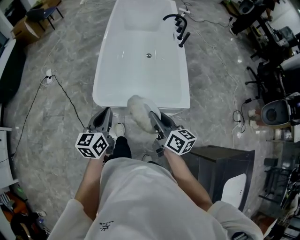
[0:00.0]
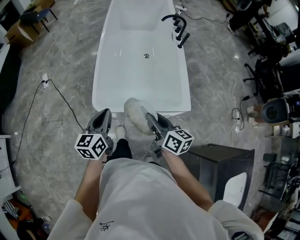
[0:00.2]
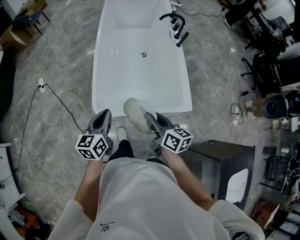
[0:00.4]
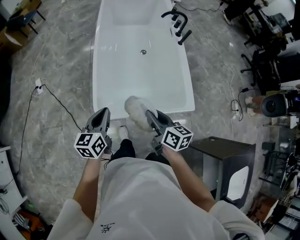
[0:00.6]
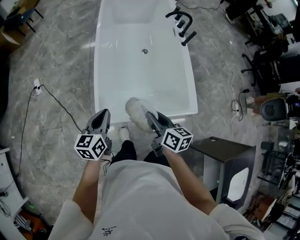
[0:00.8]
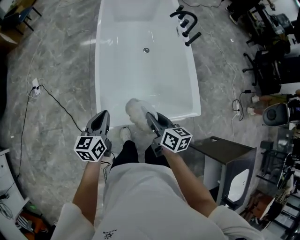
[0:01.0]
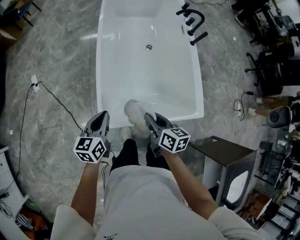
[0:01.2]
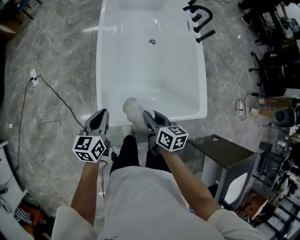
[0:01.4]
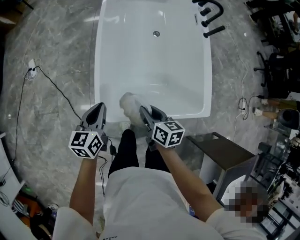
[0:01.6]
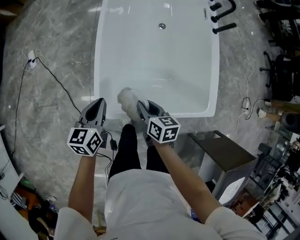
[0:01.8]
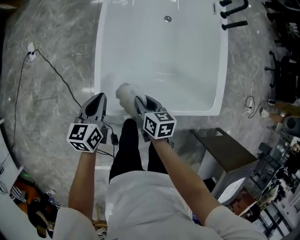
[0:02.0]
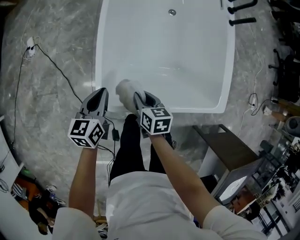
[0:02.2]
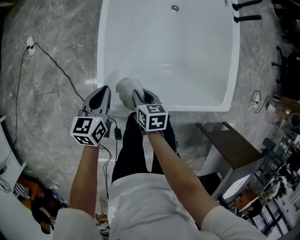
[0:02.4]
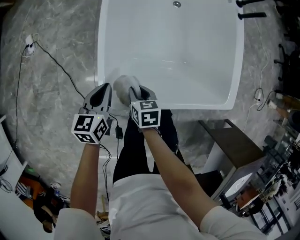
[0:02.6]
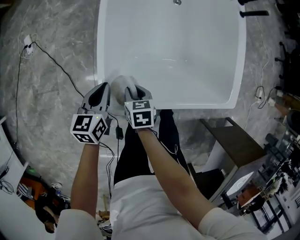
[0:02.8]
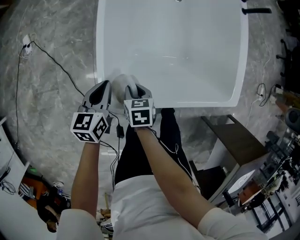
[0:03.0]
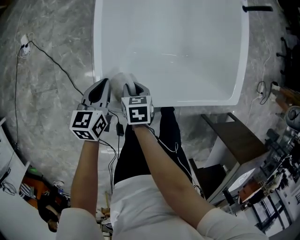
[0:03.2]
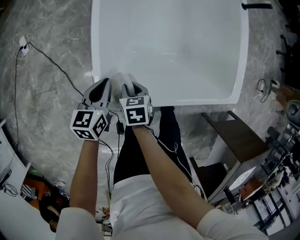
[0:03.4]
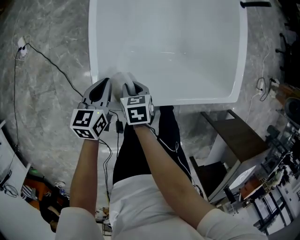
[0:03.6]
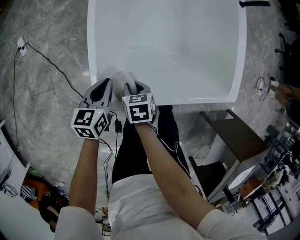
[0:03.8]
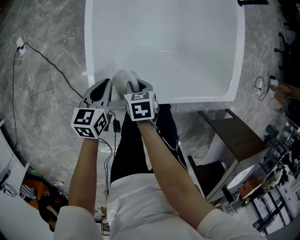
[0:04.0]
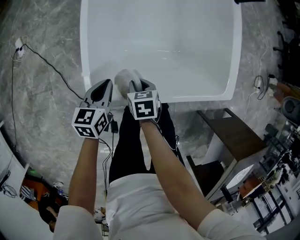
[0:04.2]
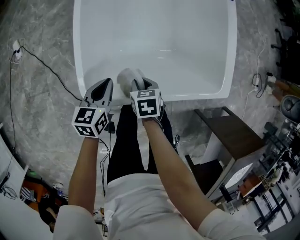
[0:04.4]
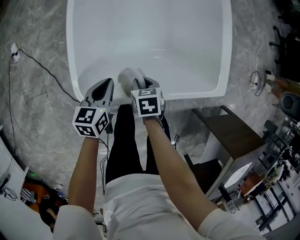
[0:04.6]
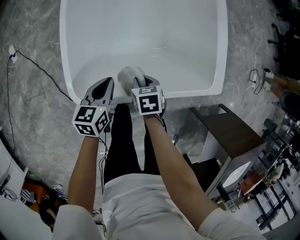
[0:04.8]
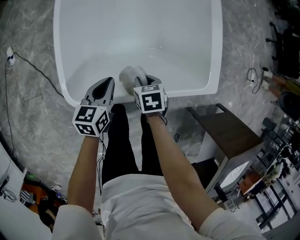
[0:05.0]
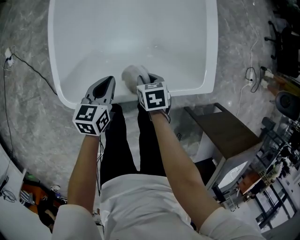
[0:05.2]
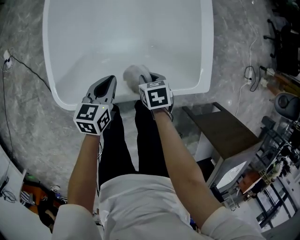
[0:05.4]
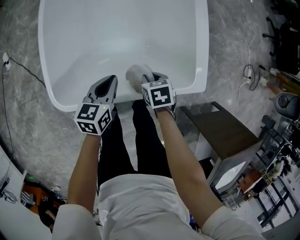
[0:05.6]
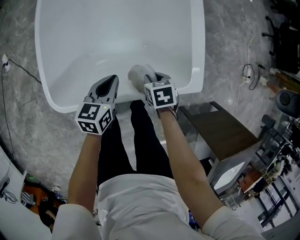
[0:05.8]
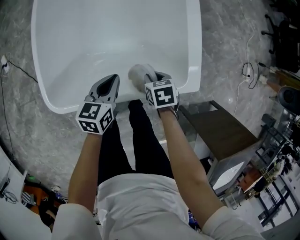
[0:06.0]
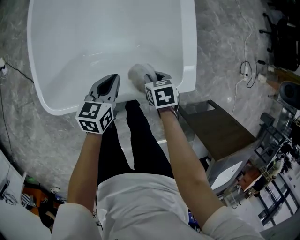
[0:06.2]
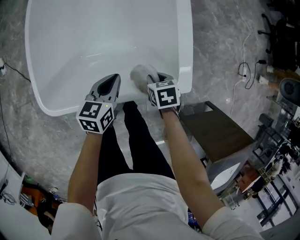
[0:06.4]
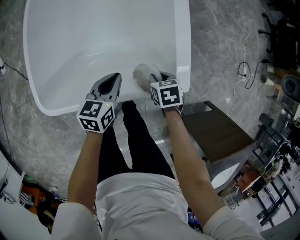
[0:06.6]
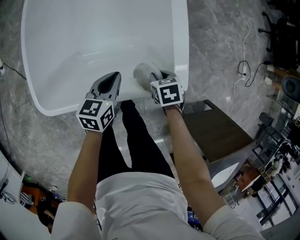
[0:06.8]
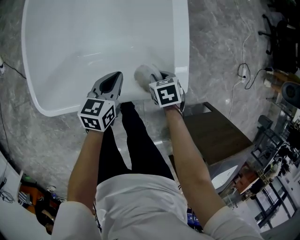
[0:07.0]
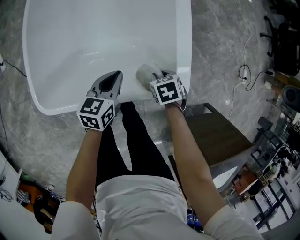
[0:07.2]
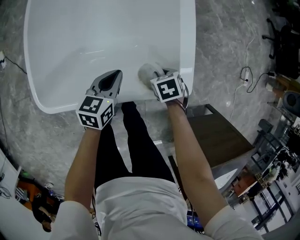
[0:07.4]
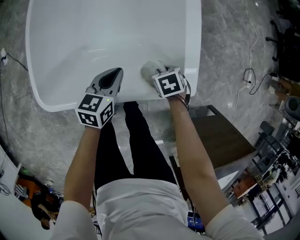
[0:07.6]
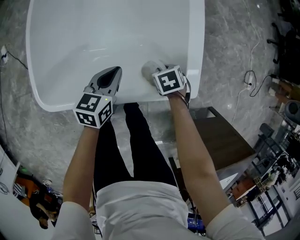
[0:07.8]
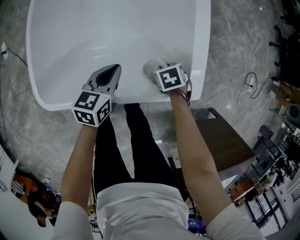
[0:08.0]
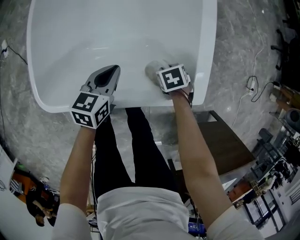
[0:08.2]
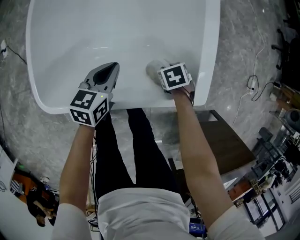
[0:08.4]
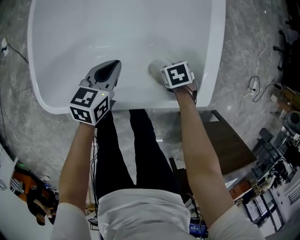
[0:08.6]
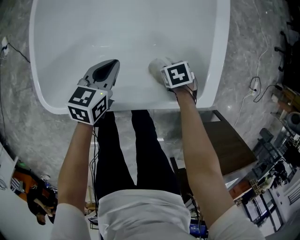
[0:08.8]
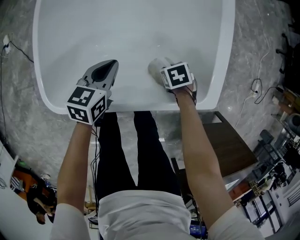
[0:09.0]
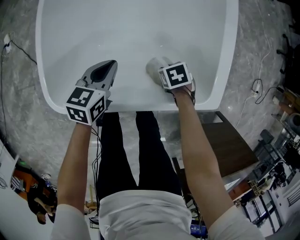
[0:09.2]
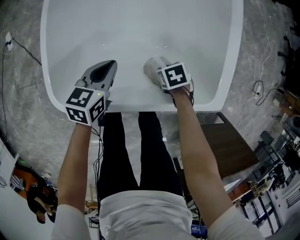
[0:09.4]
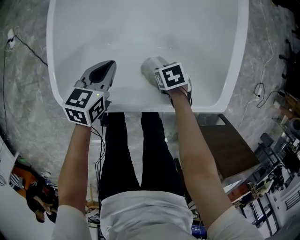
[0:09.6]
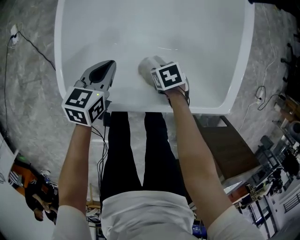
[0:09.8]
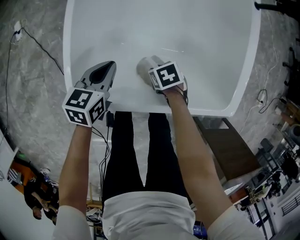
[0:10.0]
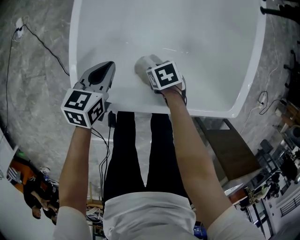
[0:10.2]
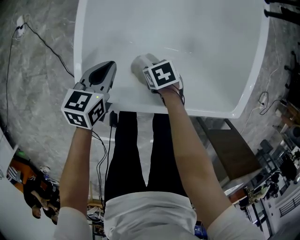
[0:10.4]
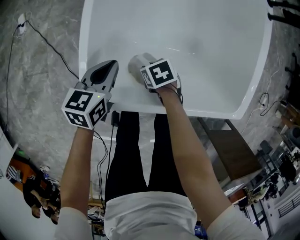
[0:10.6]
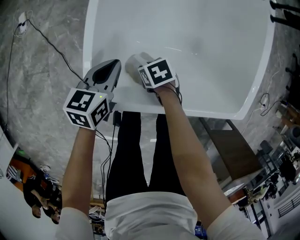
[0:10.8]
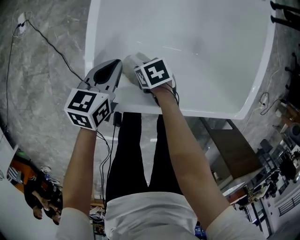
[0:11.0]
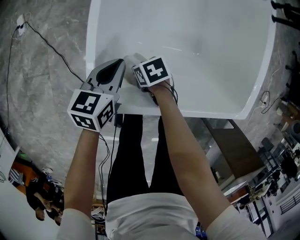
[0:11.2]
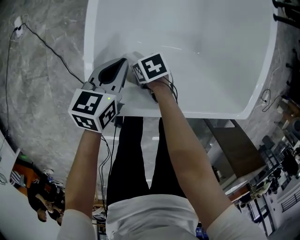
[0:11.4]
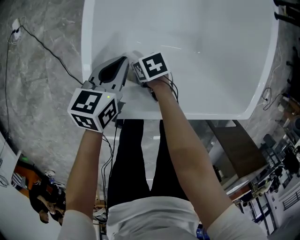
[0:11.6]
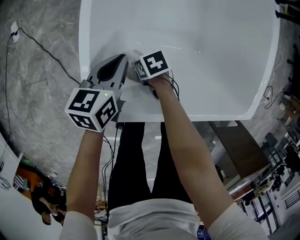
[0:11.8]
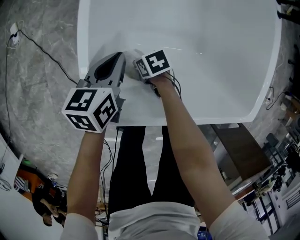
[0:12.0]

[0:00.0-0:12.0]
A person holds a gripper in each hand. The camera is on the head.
0:00.0 to 0:01.6: Both grippers move forward, downward and to the left, approximately 30 cm. The right gripper rotates some 30 degrees.
0:01.6 to 0:03.0: The left gripper moves downward, about 15 cm. The right gripper is displaced downward and to the left by approximately 20 cm, and turns by roughly 20 degrees.
0:03.0 to 0:04.4: The two grippers go some 10 cm to the right.
0:04.4 to 0:06.0: Both grippers travel together to the right, some 25 cm.
0:06.0 to 0:07.6: The left gripper moves about 5 cm. The right gripper ends up some 10 cm from where it was.
0:07.6 to 0:09.0: The left gripper moves approximately 10 cm. Meanwhile the right gripper moves downward, approximately 5 cm.
0:09.0 to 0:10.4: The right gripper ends up roughly 25 cm from where it was. Meanwhile the left gripper moves some 20 cm.
0:10.4 to 0:12.0: The right gripper changes place by about 10 cm, while the left gripper ends up some 5 cm from where it was.

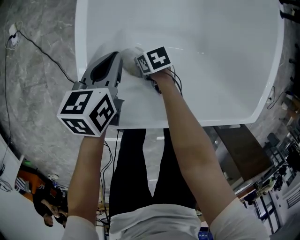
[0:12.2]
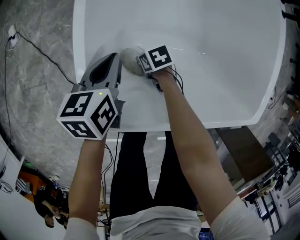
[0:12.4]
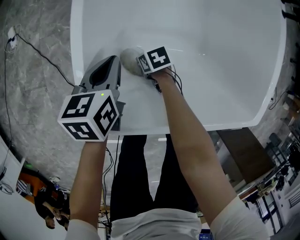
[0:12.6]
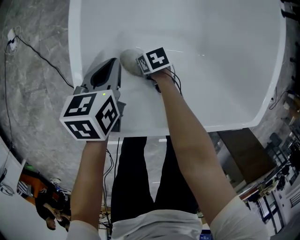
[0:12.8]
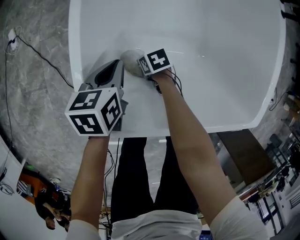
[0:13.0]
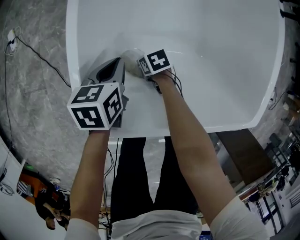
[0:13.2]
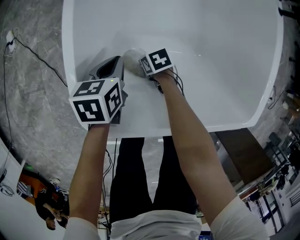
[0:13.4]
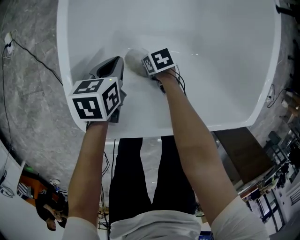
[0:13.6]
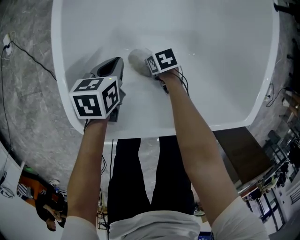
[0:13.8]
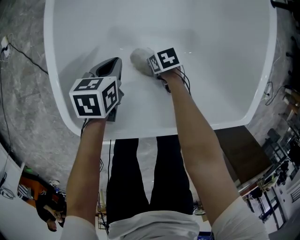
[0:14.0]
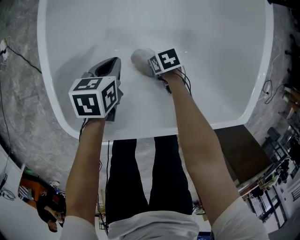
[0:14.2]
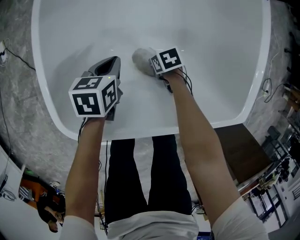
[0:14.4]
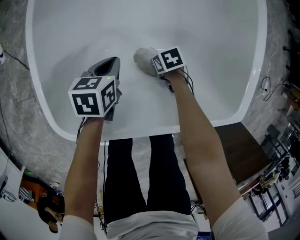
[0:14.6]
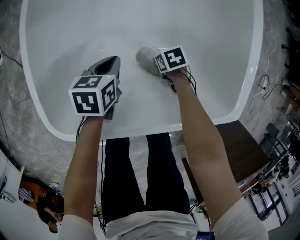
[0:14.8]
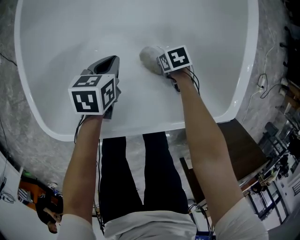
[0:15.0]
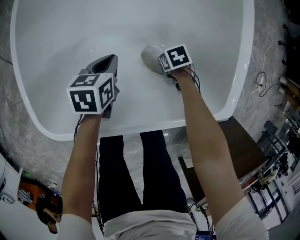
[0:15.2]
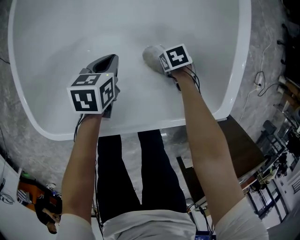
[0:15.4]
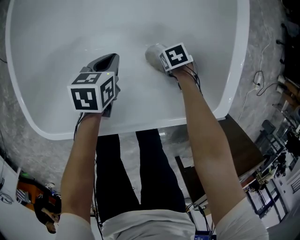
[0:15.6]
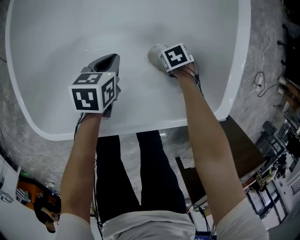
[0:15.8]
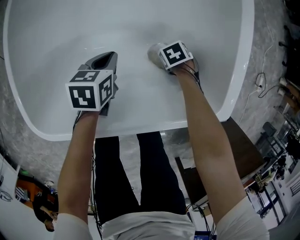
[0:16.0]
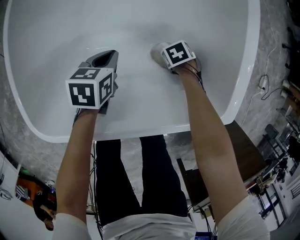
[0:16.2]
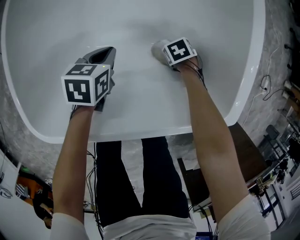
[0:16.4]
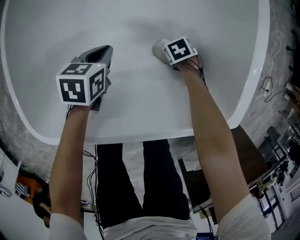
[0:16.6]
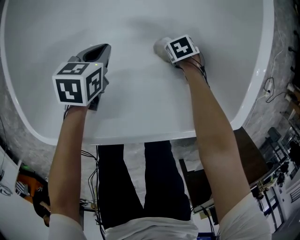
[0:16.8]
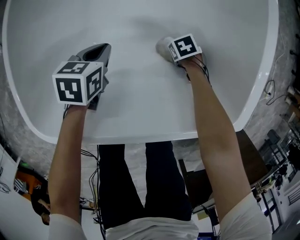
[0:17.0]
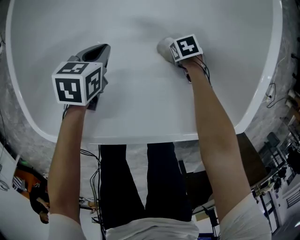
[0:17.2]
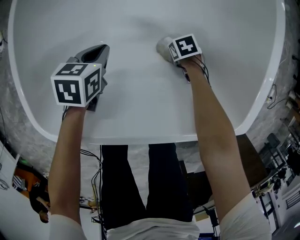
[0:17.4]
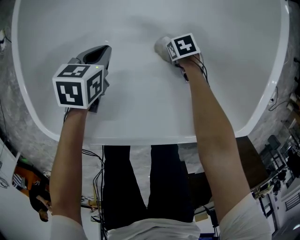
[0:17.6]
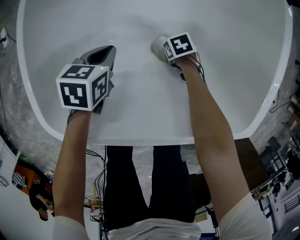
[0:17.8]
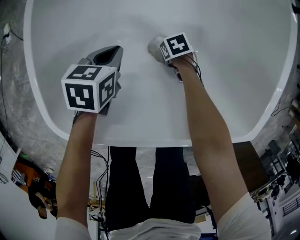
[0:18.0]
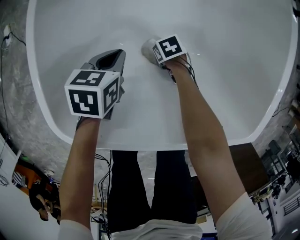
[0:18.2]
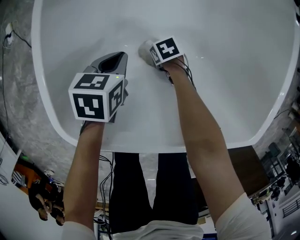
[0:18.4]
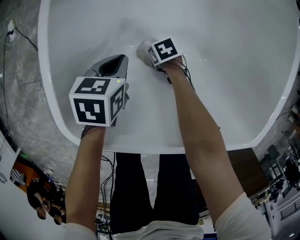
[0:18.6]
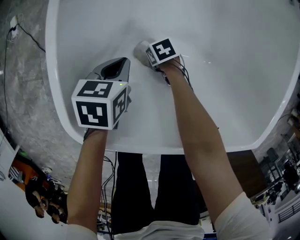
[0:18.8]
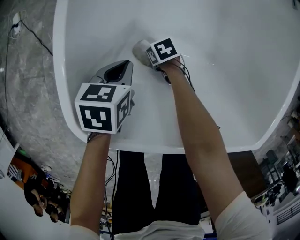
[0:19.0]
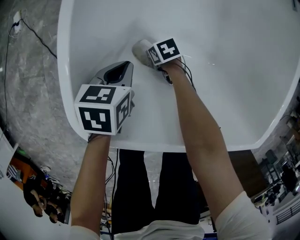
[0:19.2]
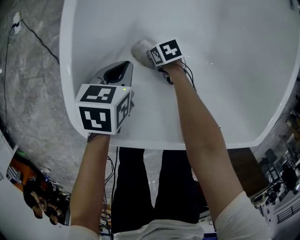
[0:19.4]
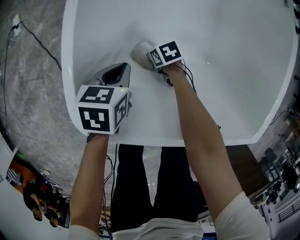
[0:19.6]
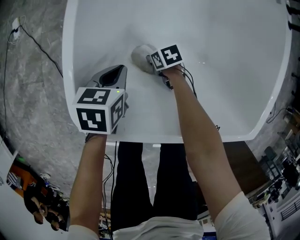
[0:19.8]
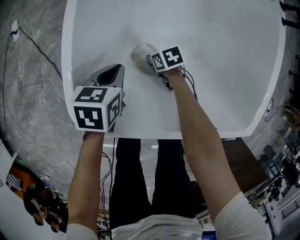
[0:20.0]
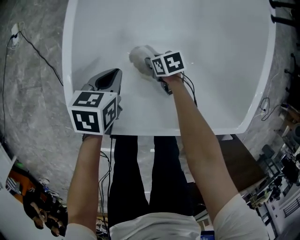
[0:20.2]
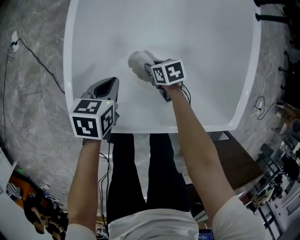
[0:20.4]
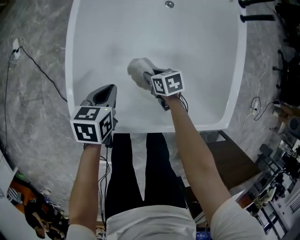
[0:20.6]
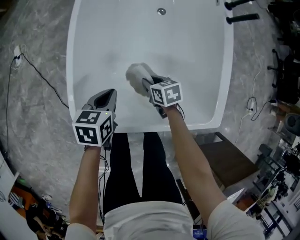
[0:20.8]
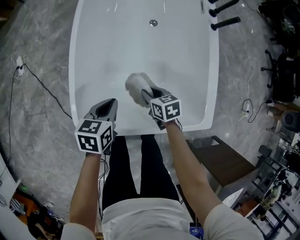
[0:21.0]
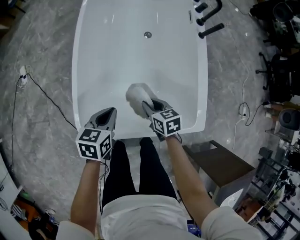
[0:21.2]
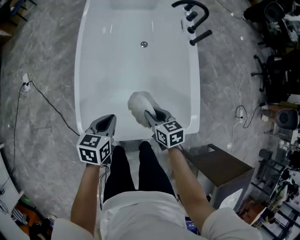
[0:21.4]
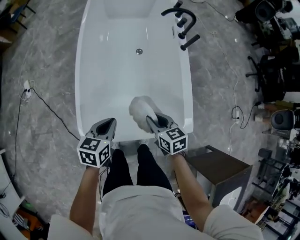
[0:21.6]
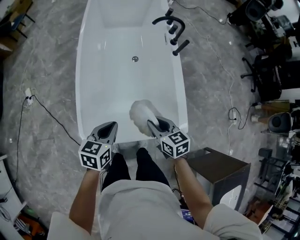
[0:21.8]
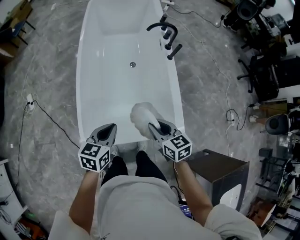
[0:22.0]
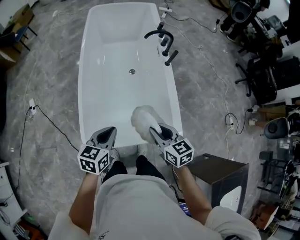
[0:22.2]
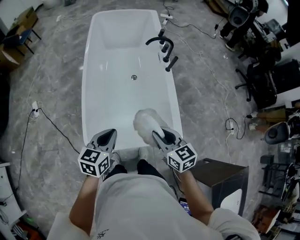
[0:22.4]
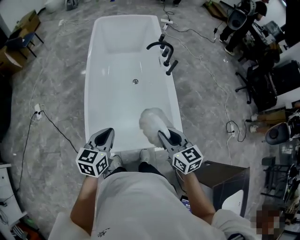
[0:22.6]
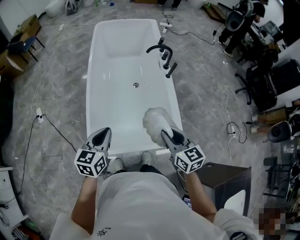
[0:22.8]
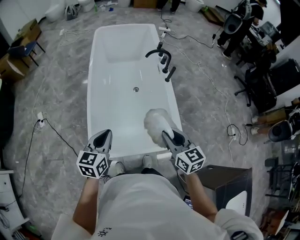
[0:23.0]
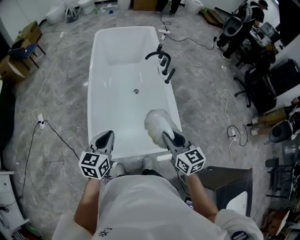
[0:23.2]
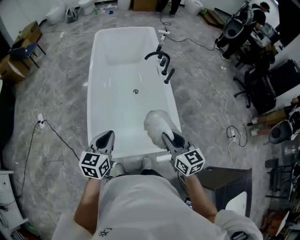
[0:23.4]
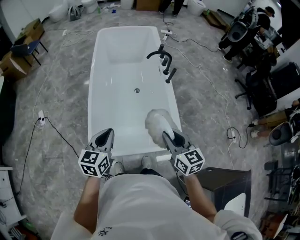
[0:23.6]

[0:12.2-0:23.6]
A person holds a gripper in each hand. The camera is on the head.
0:12.2 to 0:13.6: The right gripper shifts by roughly 10 cm. Meanwhile the left gripper is displaced downward by approximately 5 cm.
0:13.6 to 0:15.0: The left gripper ends up about 15 cm from where it was, while the right gripper moves roughly 20 cm.
0:15.0 to 0:16.4: The right gripper ends up some 10 cm from where it was.
0:16.4 to 0:17.8: The left gripper shifts by approximately 10 cm, while the right gripper ends up approximately 15 cm from where it was.
0:17.8 to 0:19.4: The left gripper shifts by approximately 10 cm. Meanwhile the right gripper shifts by some 20 cm.
0:19.4 to 0:20.8: The right gripper goes some 25 cm upward, and rotates some 20 degrees. The left gripper moves upward, roughly 15 cm.
0:20.8 to 0:22.2: Both grippers move upward, some 35 cm. The left gripper swivels about 20 degrees. The right gripper turns by about 30 degrees.
0:22.2 to 0:23.6: The grippers both shift upward by some 10 cm.
